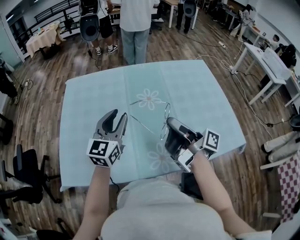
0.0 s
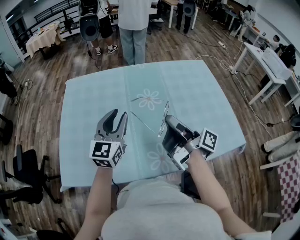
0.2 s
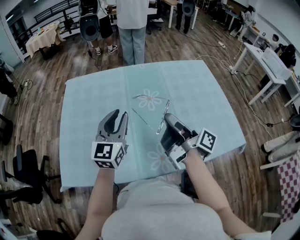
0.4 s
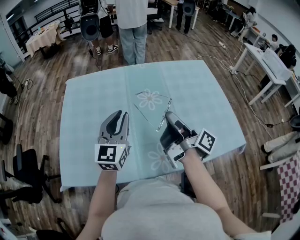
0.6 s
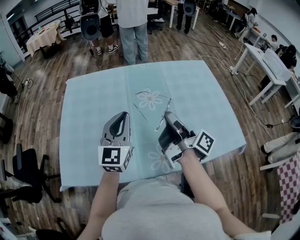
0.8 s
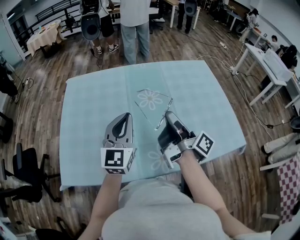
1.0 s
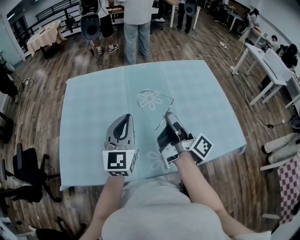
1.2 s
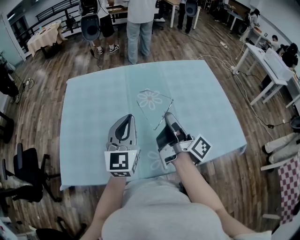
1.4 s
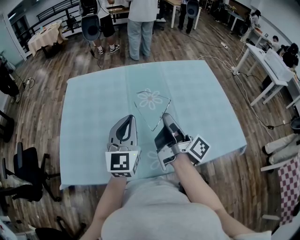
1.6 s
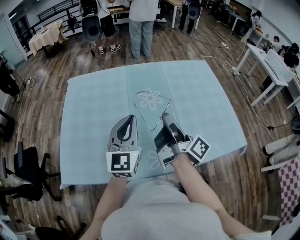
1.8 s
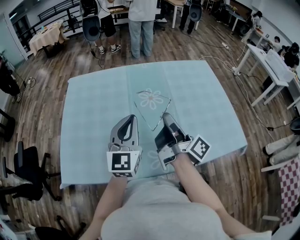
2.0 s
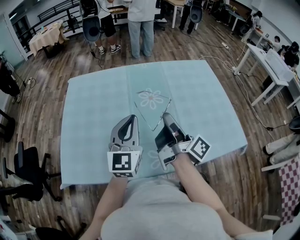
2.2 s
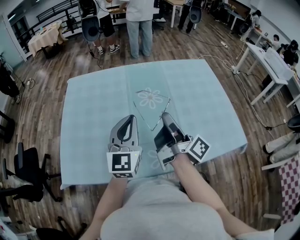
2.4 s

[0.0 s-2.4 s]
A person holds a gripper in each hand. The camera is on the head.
0.0 to 1.2 s: The left gripper closes its fingers.

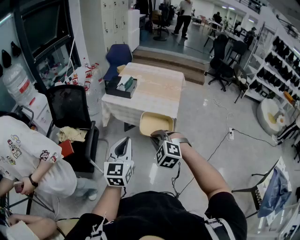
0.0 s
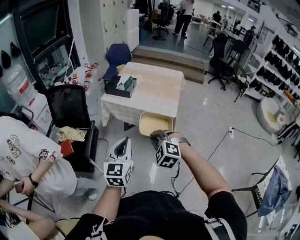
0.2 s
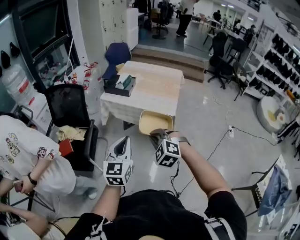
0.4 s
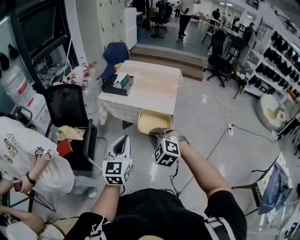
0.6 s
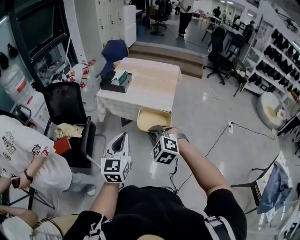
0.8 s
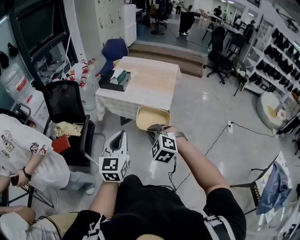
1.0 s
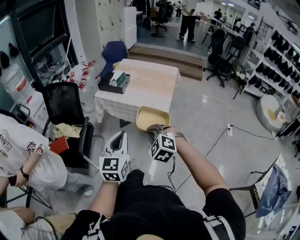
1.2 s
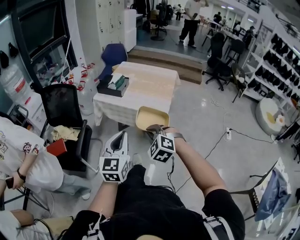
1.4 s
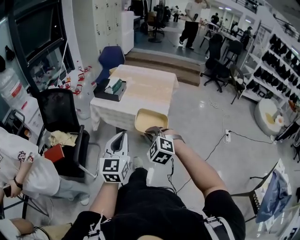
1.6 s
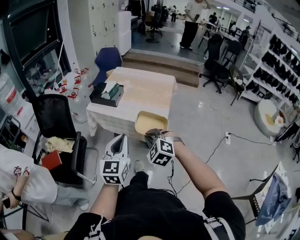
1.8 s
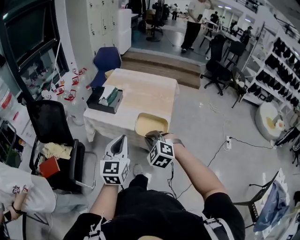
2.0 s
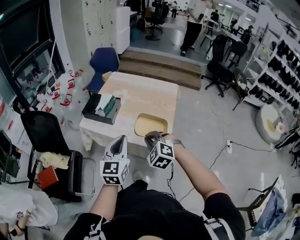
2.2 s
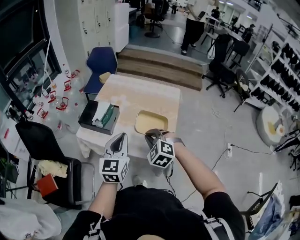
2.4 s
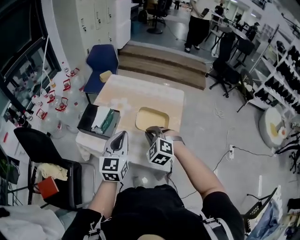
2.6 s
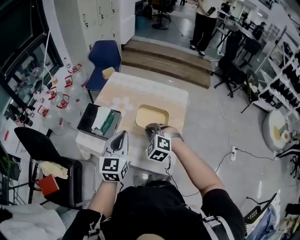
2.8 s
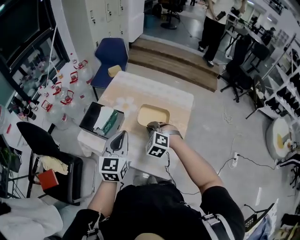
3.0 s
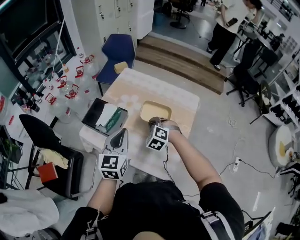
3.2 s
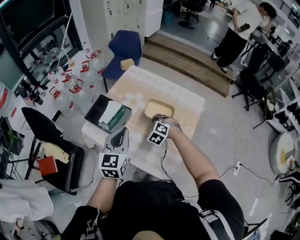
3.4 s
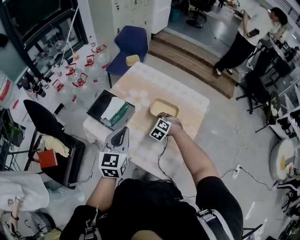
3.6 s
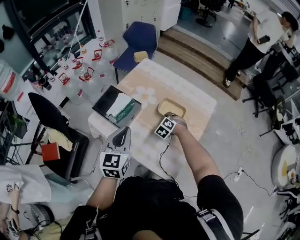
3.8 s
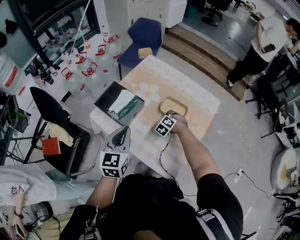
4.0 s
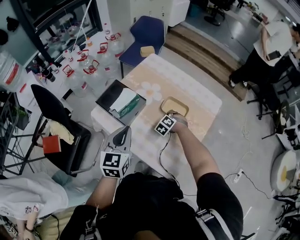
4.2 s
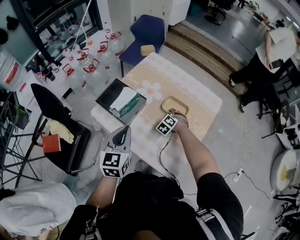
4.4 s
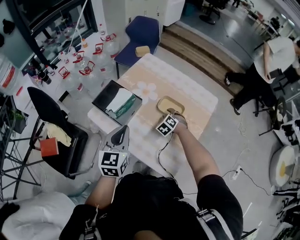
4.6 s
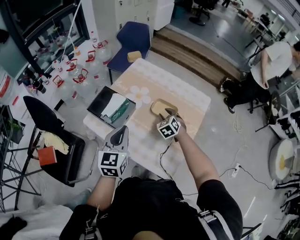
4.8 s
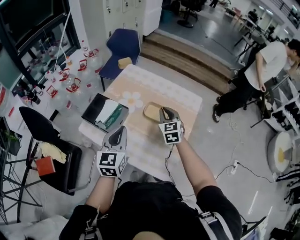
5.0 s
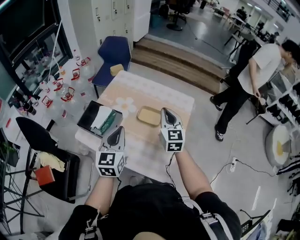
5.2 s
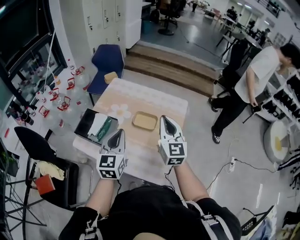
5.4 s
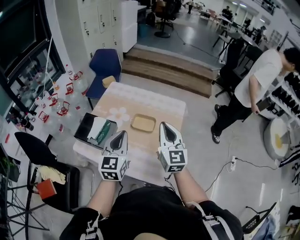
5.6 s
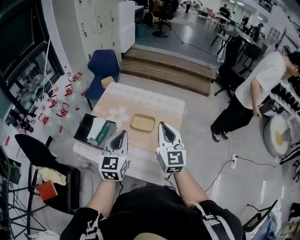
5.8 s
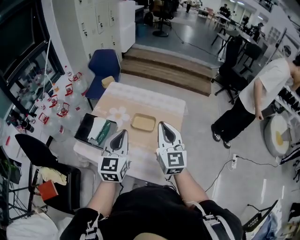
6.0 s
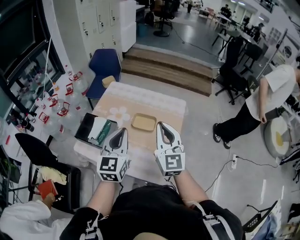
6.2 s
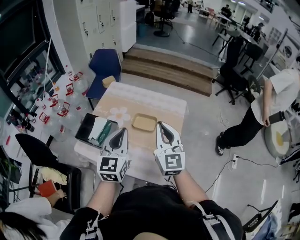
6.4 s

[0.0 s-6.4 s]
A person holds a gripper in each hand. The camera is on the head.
0.0 to 1.6 s: Both grippers travel together to the right and forward, roughly 10 cm.
1.6 to 3.2 s: The two grippers travel together, forward, some 70 cm.
3.2 to 4.8 s: The right gripper goes about 10 cm forward and downward, rotates about 20 degrees, and opens.
4.8 to 6.4 s: The left gripper is displaced upward and to the right by about 15 cm, while the right gripper goes approximately 35 cm upward and backward, points its fingers some 50 degrees further upward, and closes up.

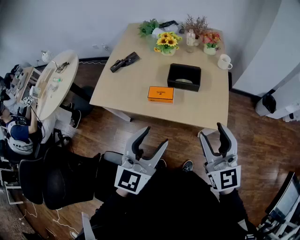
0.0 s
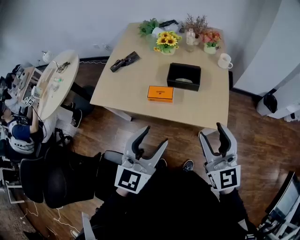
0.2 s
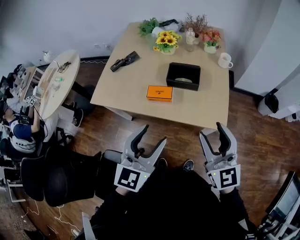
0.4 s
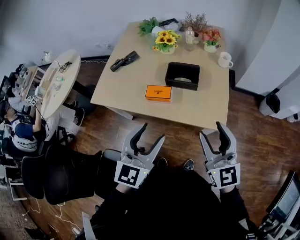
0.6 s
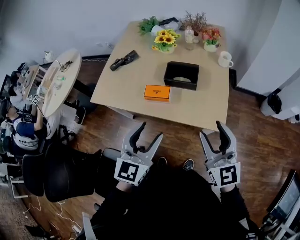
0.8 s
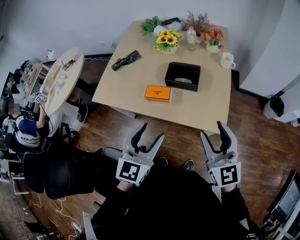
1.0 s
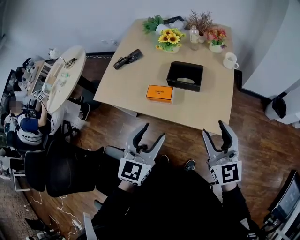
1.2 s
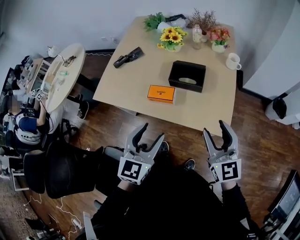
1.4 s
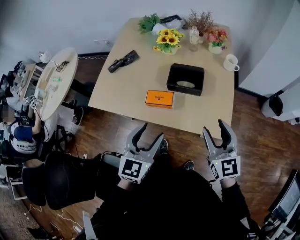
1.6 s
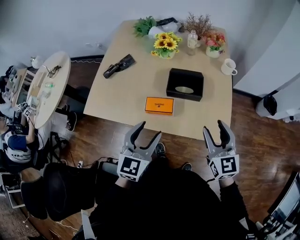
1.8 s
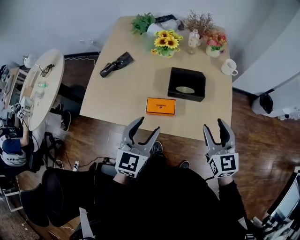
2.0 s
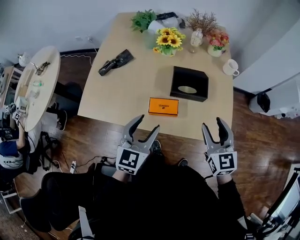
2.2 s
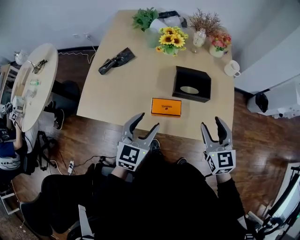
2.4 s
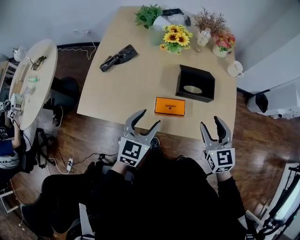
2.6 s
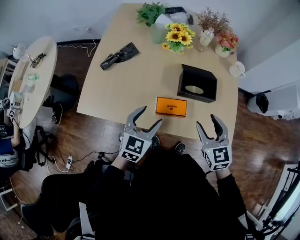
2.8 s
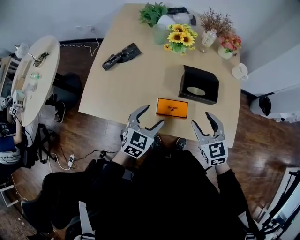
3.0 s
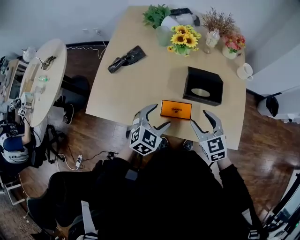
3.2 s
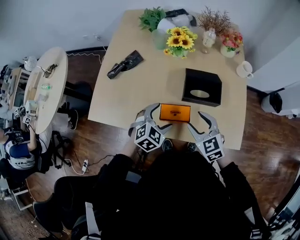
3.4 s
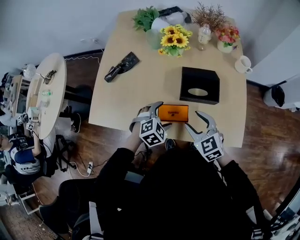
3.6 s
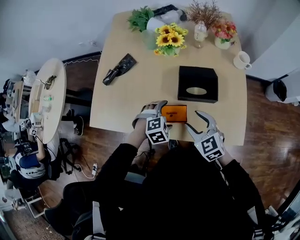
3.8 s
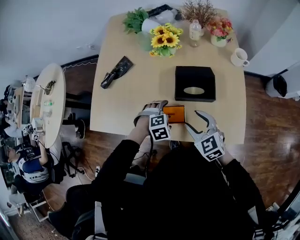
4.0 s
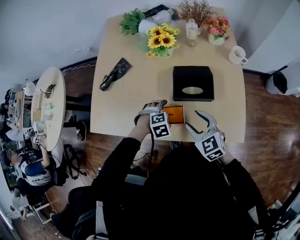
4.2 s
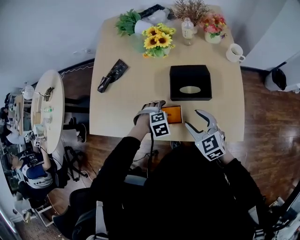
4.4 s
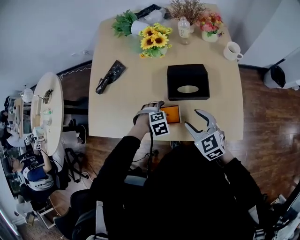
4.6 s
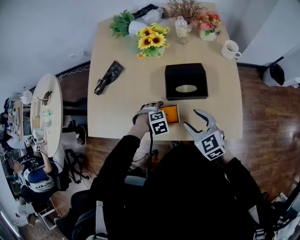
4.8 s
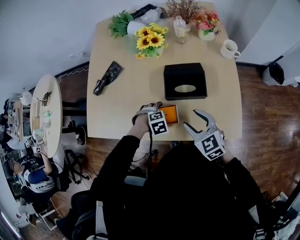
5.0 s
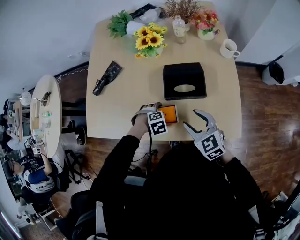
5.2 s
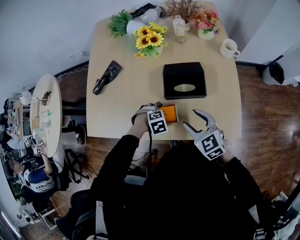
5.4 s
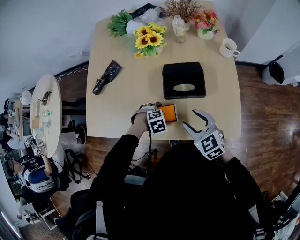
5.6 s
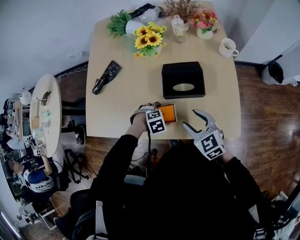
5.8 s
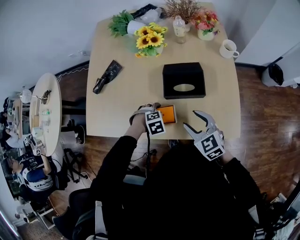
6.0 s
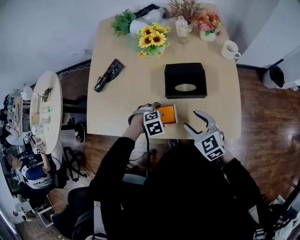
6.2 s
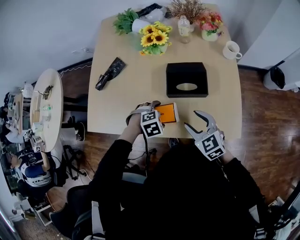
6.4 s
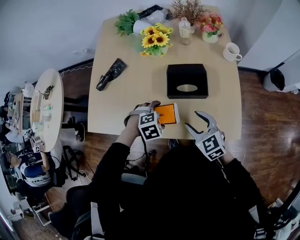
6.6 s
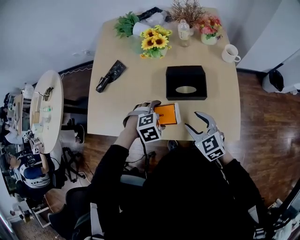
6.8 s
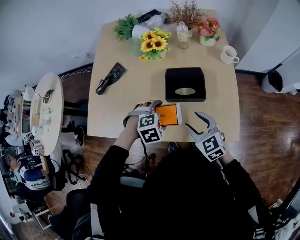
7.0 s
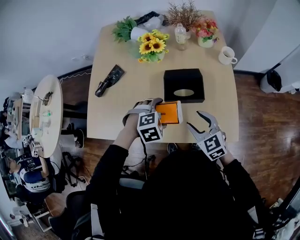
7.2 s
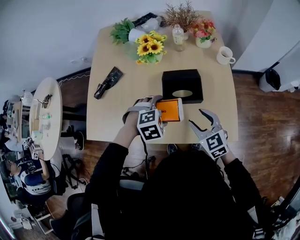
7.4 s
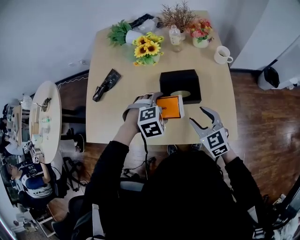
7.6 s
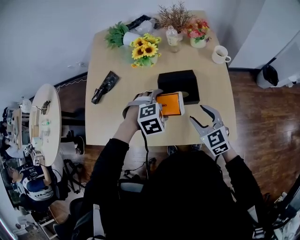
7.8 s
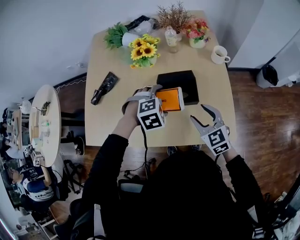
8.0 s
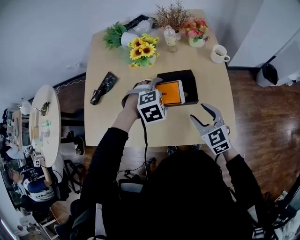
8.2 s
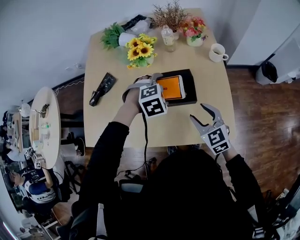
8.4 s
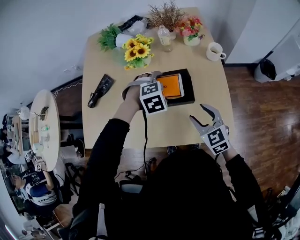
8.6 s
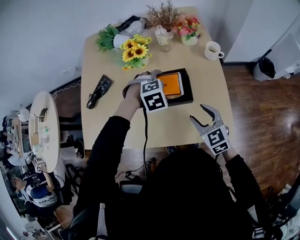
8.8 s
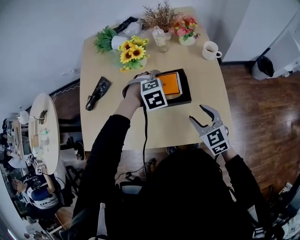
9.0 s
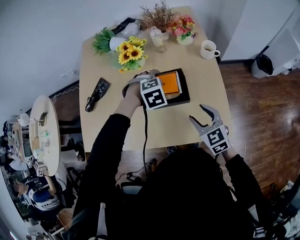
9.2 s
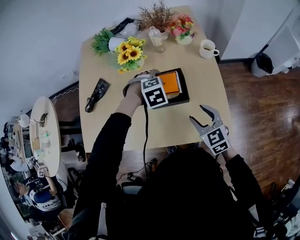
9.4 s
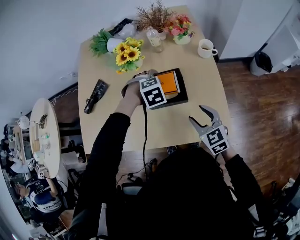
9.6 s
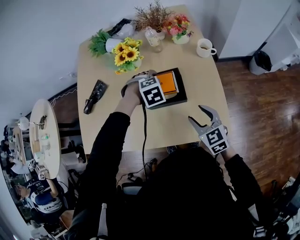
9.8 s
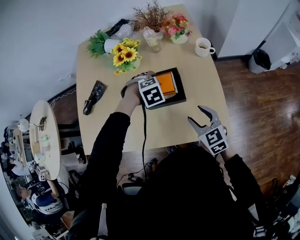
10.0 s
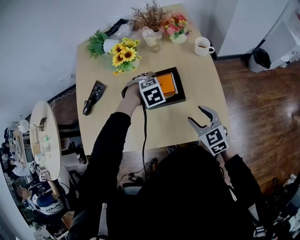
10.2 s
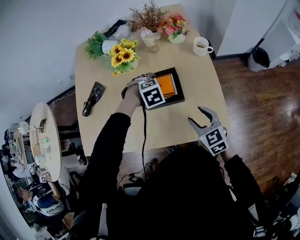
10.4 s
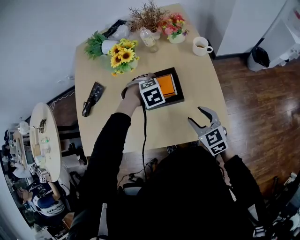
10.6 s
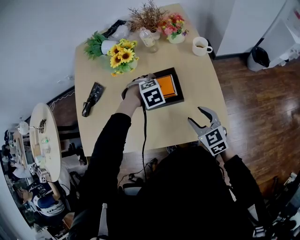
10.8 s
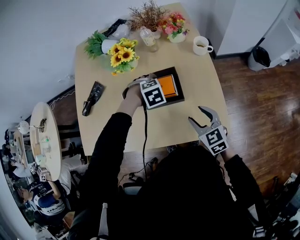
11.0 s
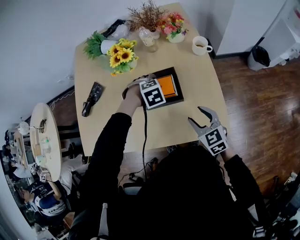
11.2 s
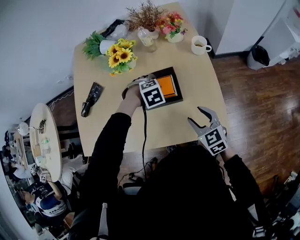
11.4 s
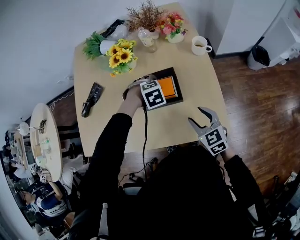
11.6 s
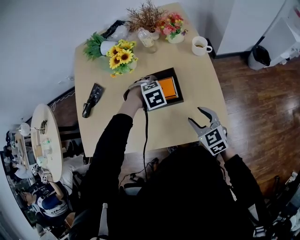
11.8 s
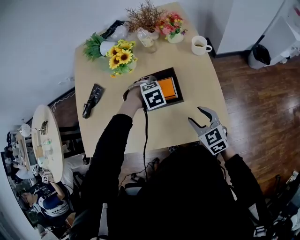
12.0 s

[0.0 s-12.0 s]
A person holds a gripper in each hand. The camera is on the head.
0.0 to 1.6 s: The two grippers go some 15 cm forward and downward.
1.6 to 3.0 s: The left gripper is displaced forward, downward and to the left by roughly 25 cm, and swivels about 20 degrees. Meanwhile the right gripper moves to the left, forward and downward, roughly 20 cm, and swivels about 20 degrees.
3.0 to 4.4 s: The right gripper heads downward, covering roughly 5 cm. Meanwhile the left gripper is displaced downward by roughly 15 cm, angles its fingers downward, by roughly 50 degrees, and opens up.
4.4 to 6.0 s: The grippers stay close to where they were, moving slightly.
6.0 to 7.6 s: The left gripper moves upward, about 15 cm; the right gripper shifts by about 5 cm.
7.6 to 9.0 s: The left gripper goes some 10 cm forward and to the right.
9.0 to 10.4 s: The grippers move only a little.
10.4 to 12.0 s: The grippers make only small movements.

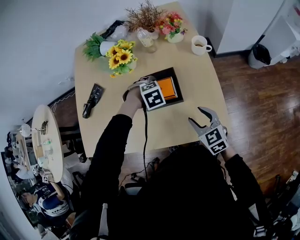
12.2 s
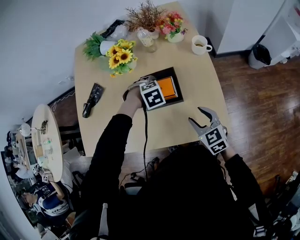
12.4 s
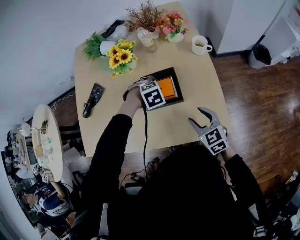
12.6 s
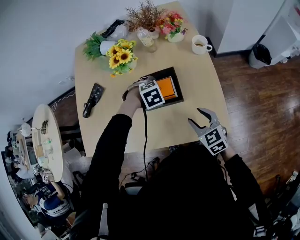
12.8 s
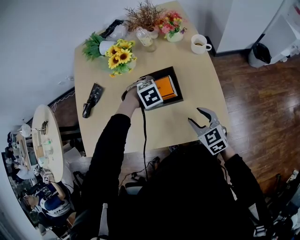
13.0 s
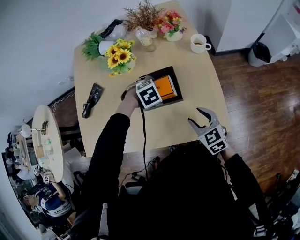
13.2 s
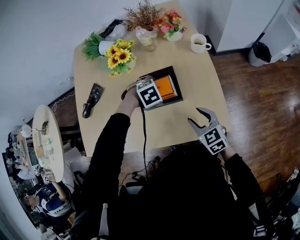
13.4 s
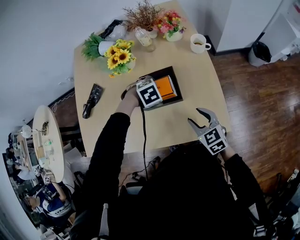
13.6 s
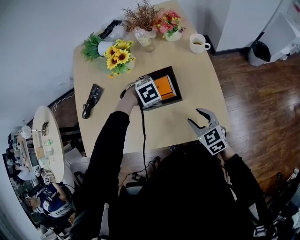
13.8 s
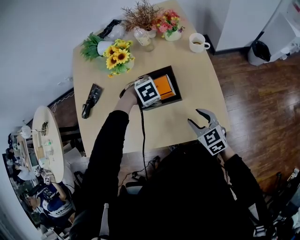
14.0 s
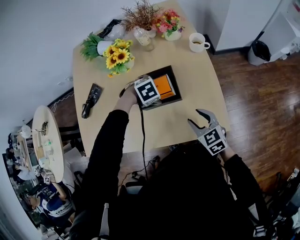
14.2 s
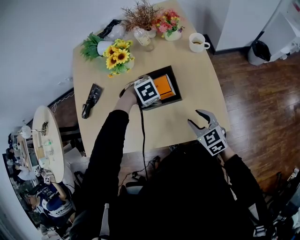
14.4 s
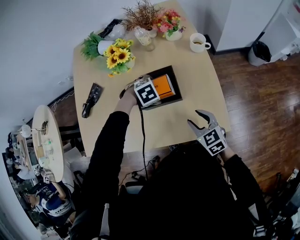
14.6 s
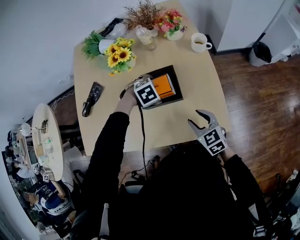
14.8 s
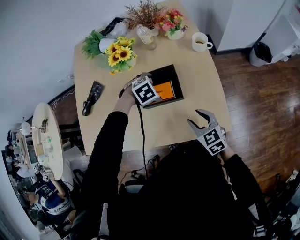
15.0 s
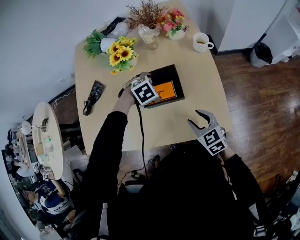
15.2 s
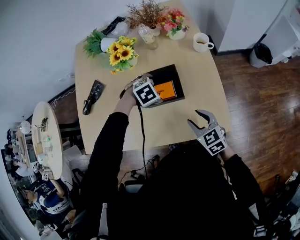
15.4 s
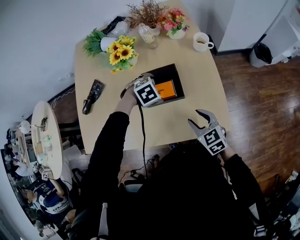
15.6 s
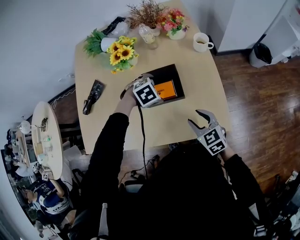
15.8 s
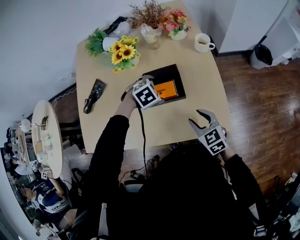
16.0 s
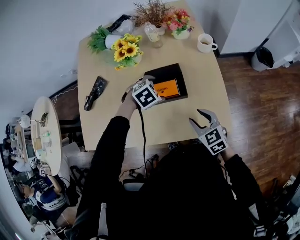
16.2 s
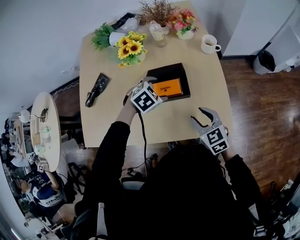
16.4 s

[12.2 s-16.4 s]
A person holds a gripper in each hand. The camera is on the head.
12.2 to 15.0 s: There are only small adjustments of the grippers.
15.0 to 16.4 s: The grippers stay close to where they were, moving slightly.
